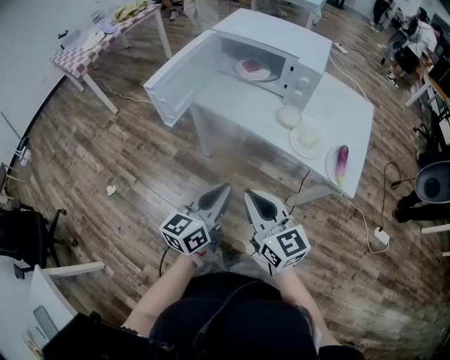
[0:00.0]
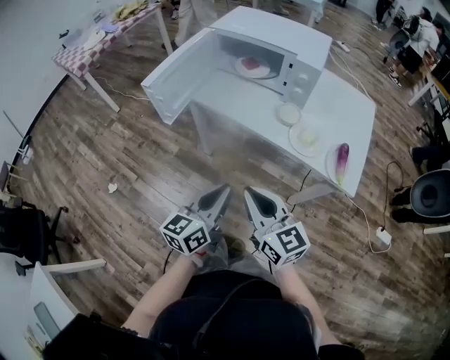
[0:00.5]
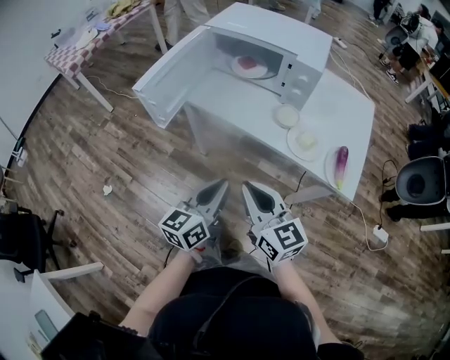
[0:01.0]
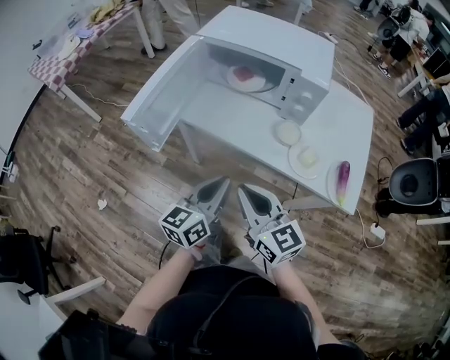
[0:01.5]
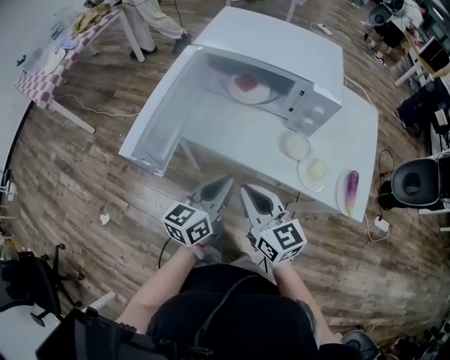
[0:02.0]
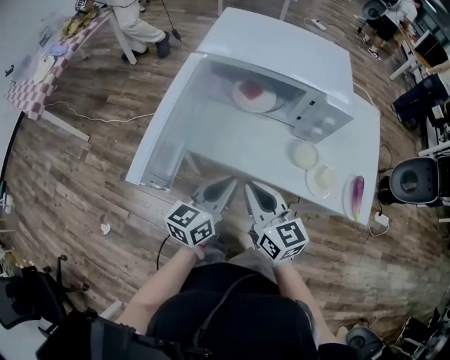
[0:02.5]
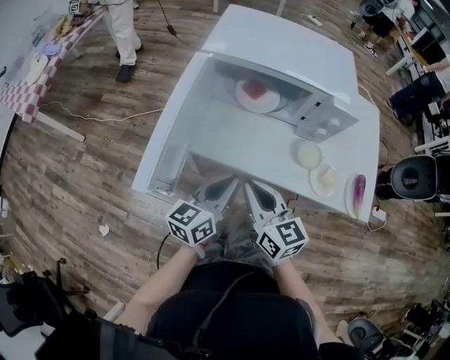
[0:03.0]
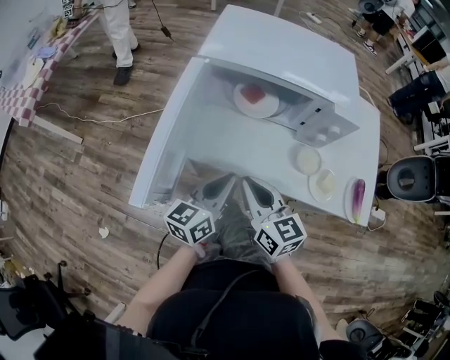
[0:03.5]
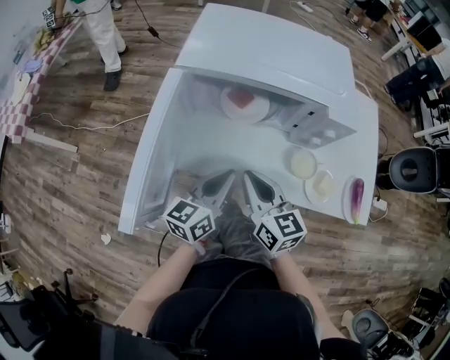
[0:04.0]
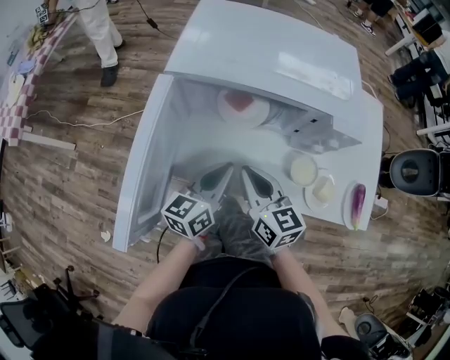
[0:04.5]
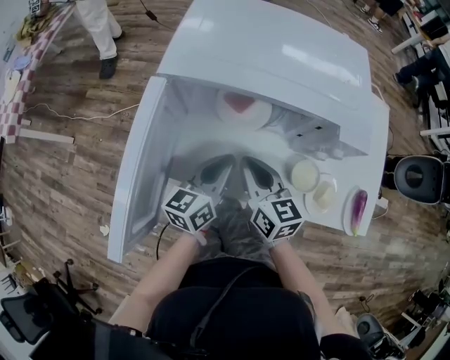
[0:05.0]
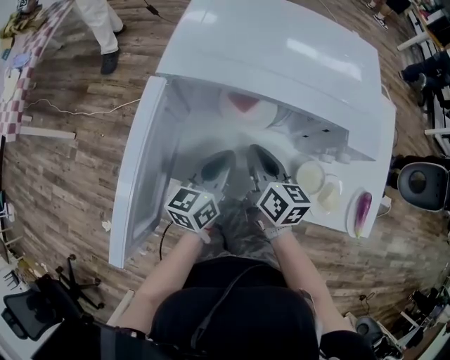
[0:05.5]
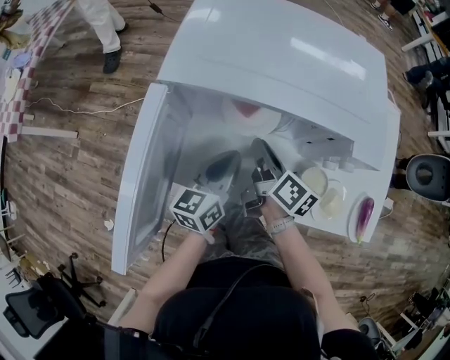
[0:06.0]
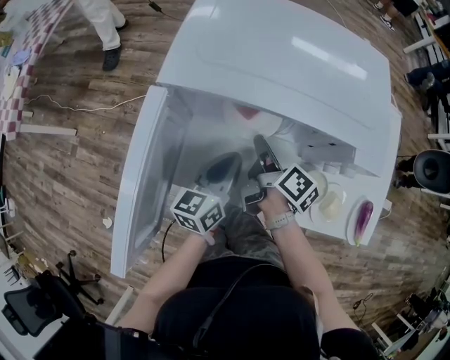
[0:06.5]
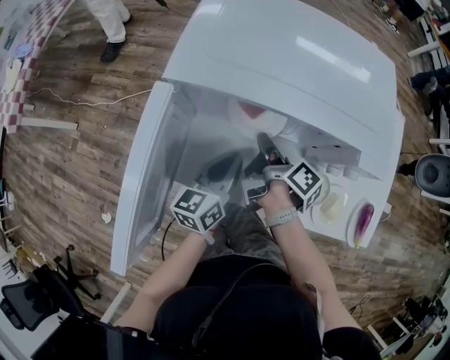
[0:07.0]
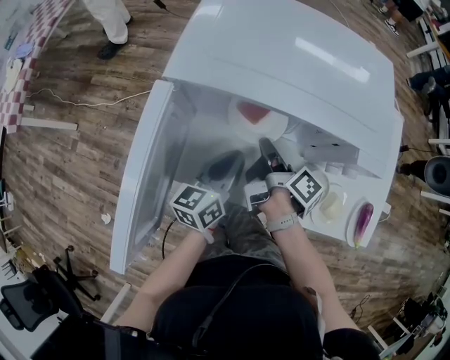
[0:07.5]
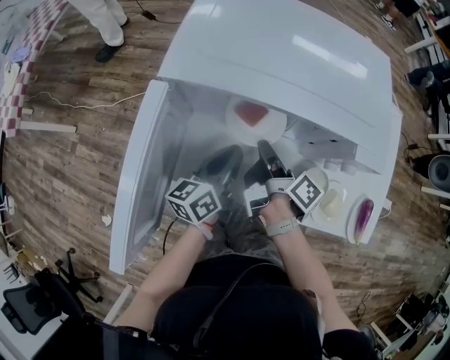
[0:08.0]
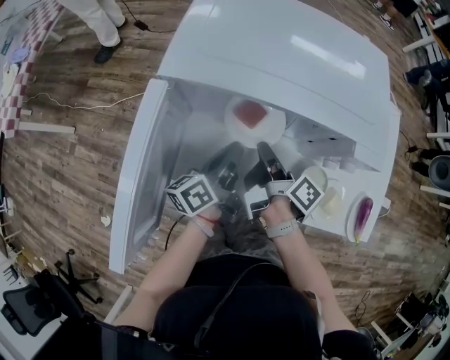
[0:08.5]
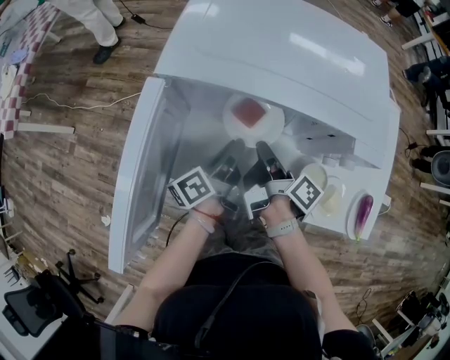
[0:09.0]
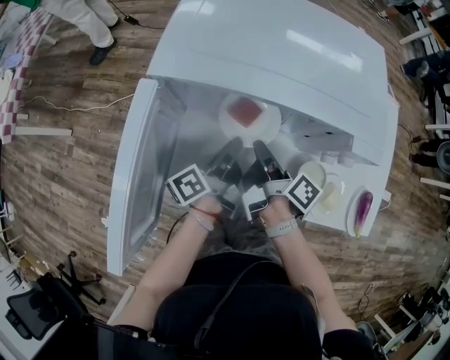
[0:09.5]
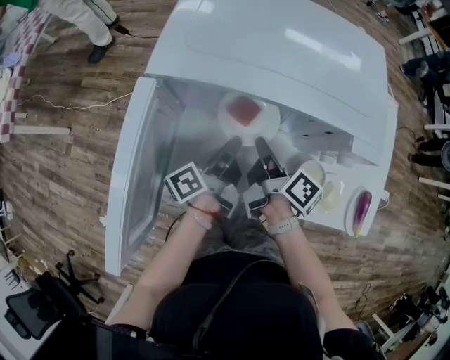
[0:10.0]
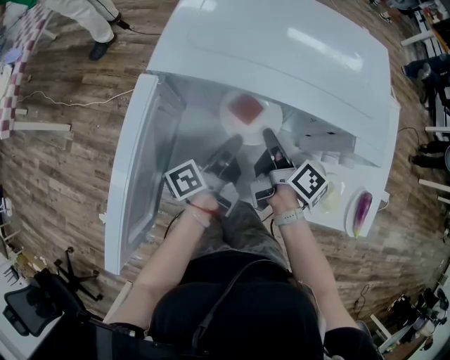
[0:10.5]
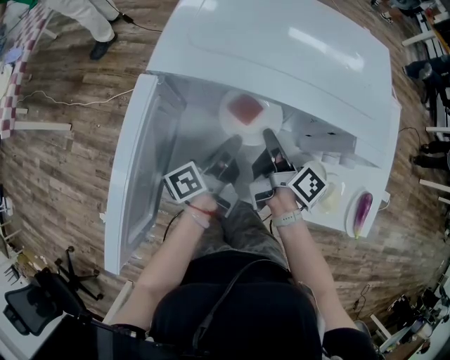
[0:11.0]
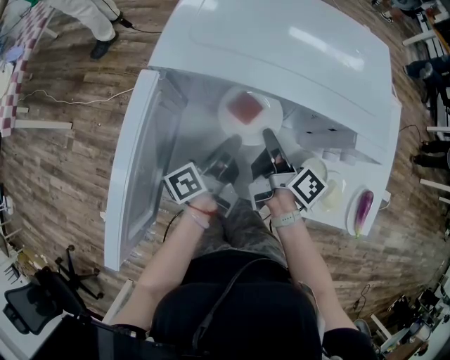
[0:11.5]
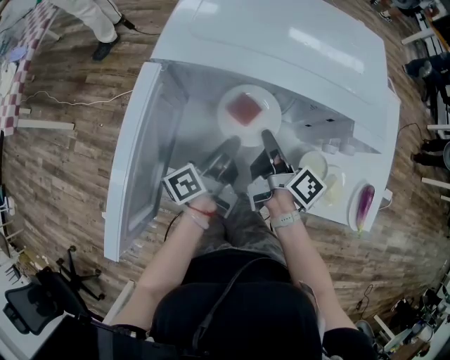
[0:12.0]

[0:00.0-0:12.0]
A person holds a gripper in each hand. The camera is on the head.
0:00.0 to 0:02.0: Both grippers travel together forward, about 20 cm.
0:02.0 to 0:04.0: The two grippers go some 15 cm forward.
0:04.0 to 0:06.0: The right gripper goes about 15 cm forward and downward, and rolls clockwise, seen from behind, by some 40 degrees, while the left gripper shifts some 10 cm forward.
0:06.0 to 0:08.0: The right gripper changes its angle by about 30 degrees.
0:08.0 to 0:10.0: The left gripper changes its angle by some 40 degrees.
0:10.0 to 0:12.0: The grippers make only small movements.

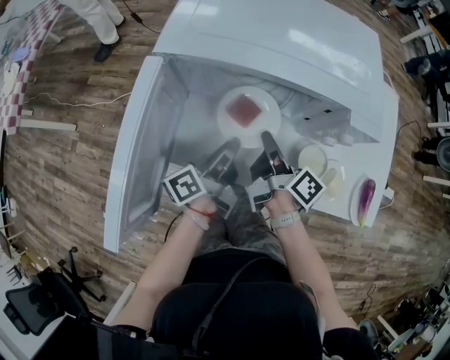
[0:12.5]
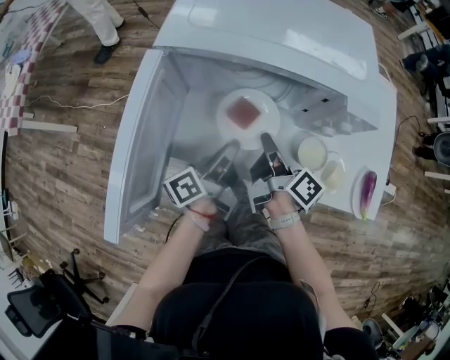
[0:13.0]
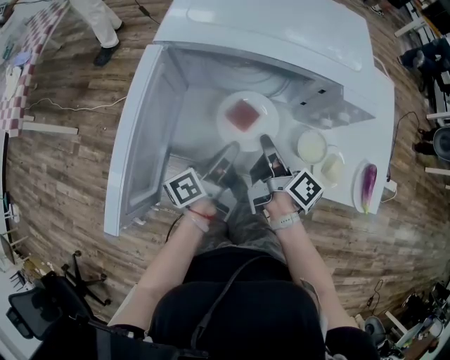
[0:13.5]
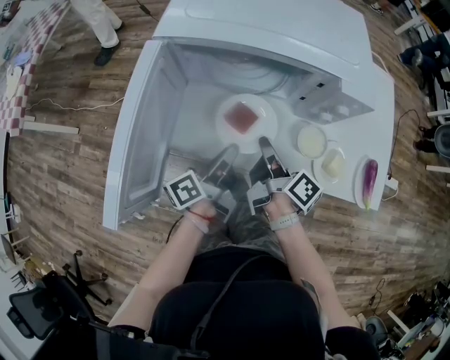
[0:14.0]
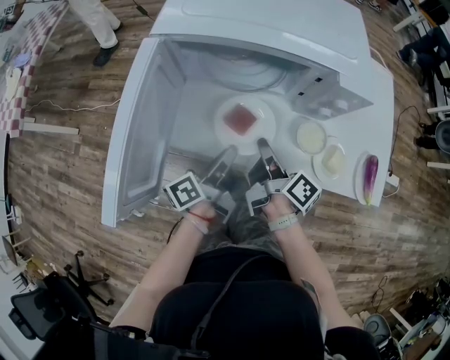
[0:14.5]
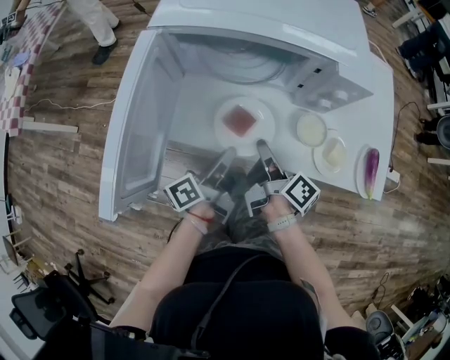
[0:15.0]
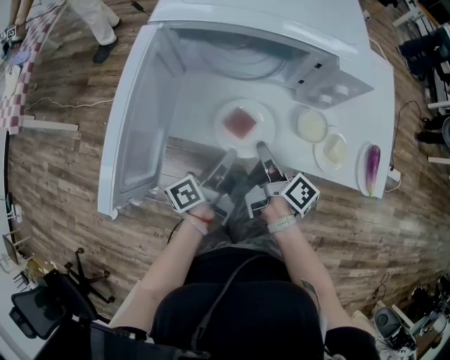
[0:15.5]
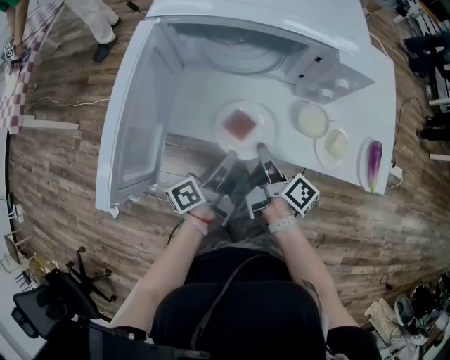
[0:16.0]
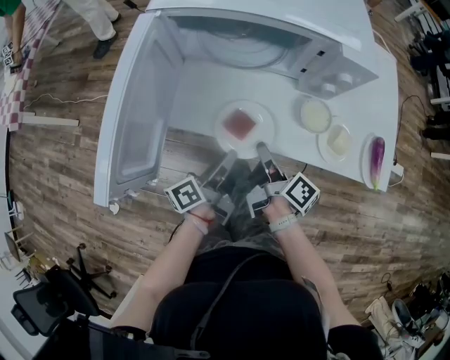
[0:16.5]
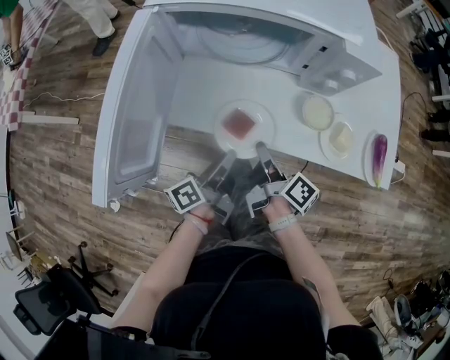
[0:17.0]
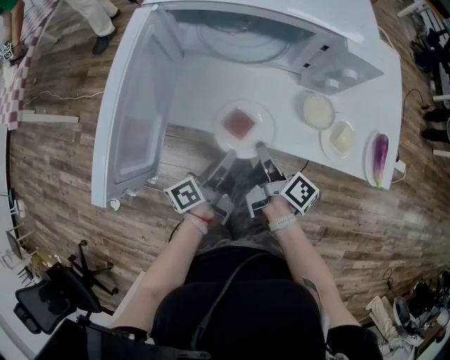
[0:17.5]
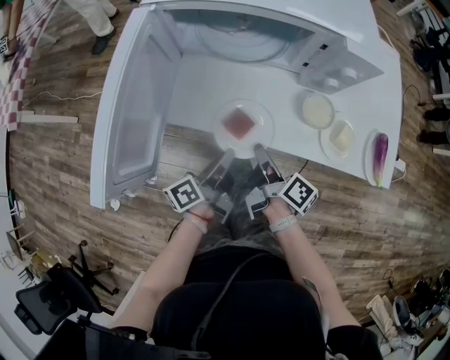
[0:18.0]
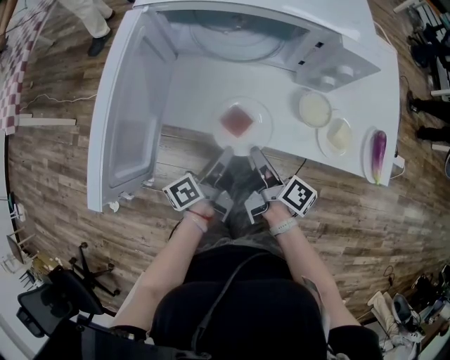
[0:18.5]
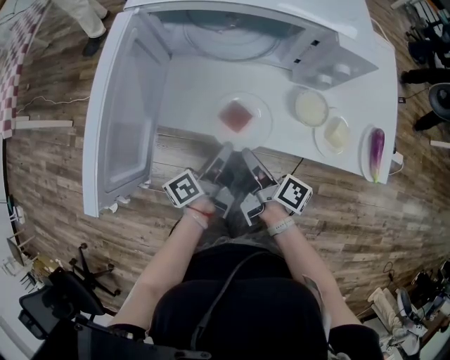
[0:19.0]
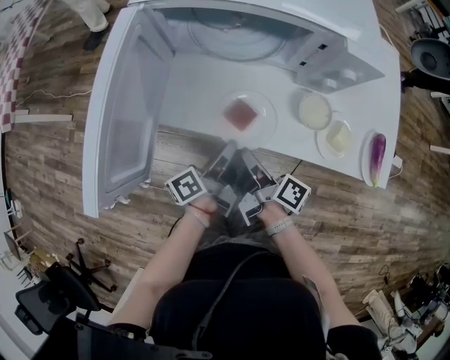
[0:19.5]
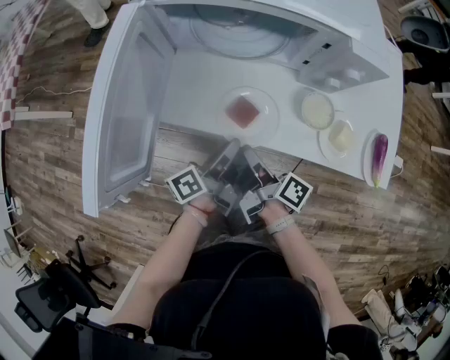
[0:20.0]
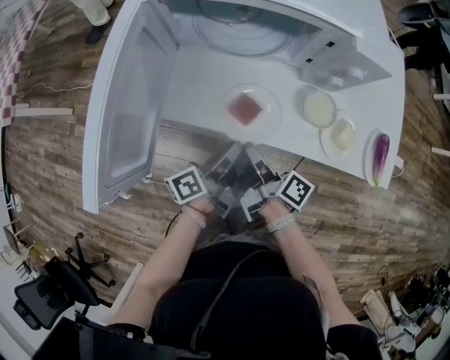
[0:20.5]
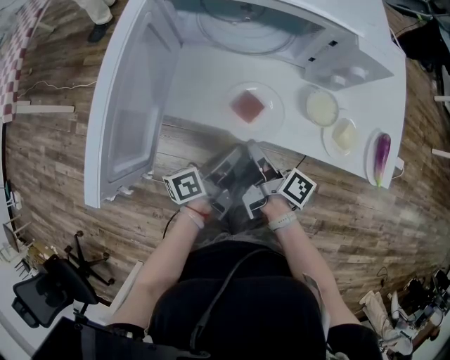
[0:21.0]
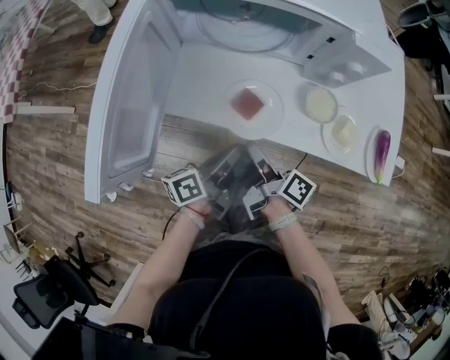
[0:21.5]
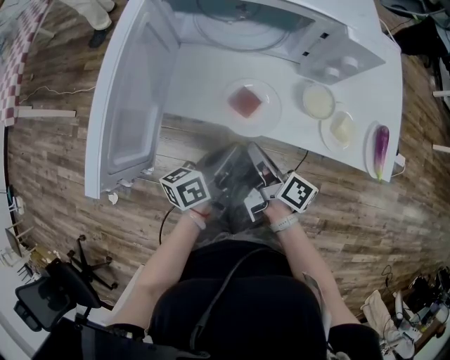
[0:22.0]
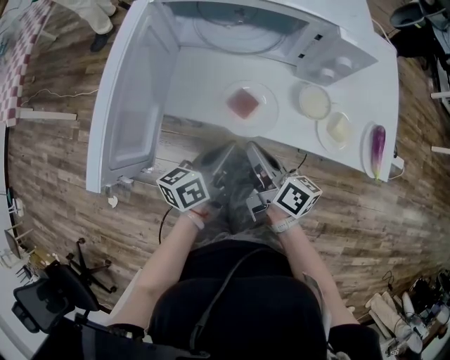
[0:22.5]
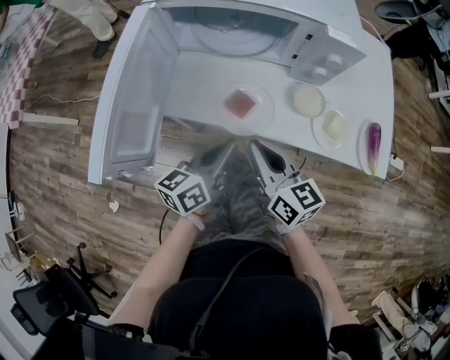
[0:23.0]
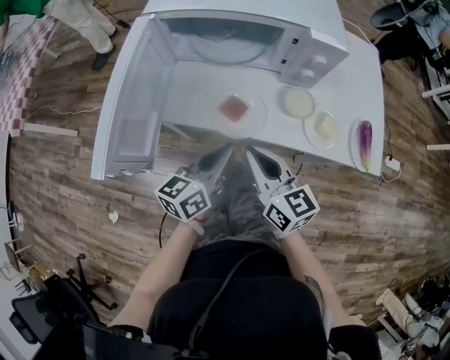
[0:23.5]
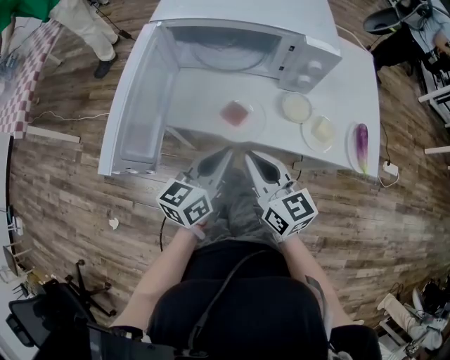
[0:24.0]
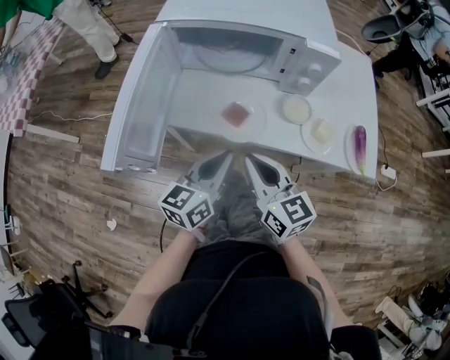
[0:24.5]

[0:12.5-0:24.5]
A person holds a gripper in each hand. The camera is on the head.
0:12.5 to 0:14.5: The grippers both shift backward by some 5 cm.
0:14.5 to 0:16.5: The grippers both shift backward by about 5 cm.
0:16.5 to 0:20.5: The grippers make only small movements.
0:20.5 to 0:22.5: The right gripper changes place by approximately 5 cm, and rotates about 30 degrees. The left gripper changes its angle by approximately 30 degrees.
0:22.5 to 0:24.5: Both grippers travel together upward, some 10 cm. The left gripper rotates approximately 20 degrees. Meanwhile the right gripper rotates around the line of its fingers by roughly 40 degrees, counterclockwise from behind.

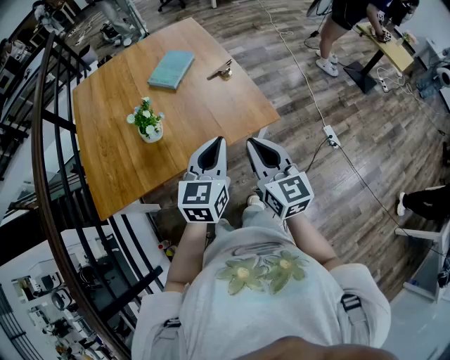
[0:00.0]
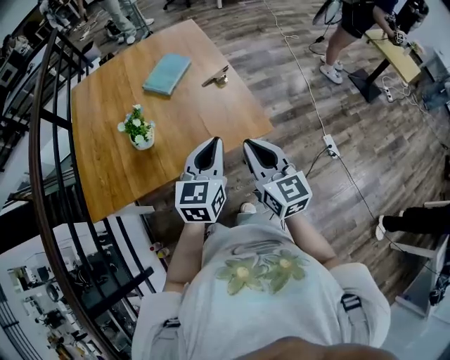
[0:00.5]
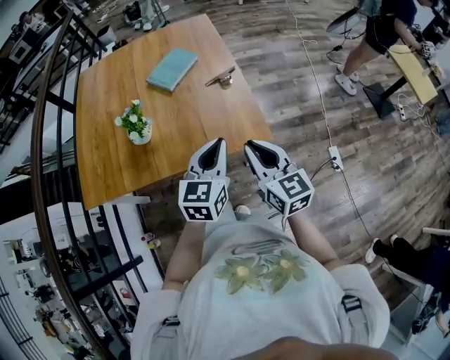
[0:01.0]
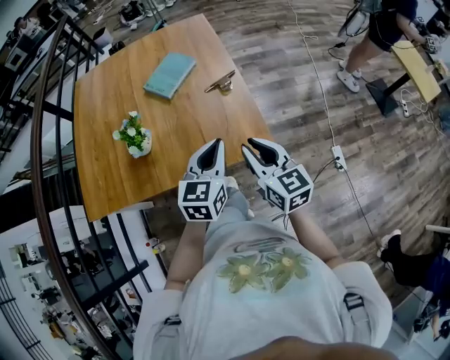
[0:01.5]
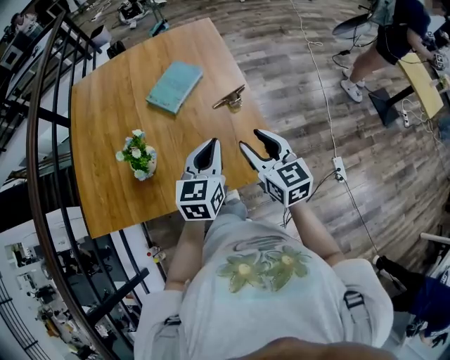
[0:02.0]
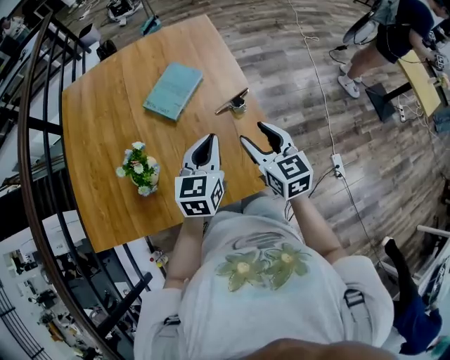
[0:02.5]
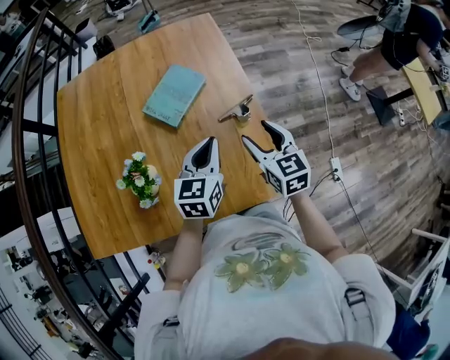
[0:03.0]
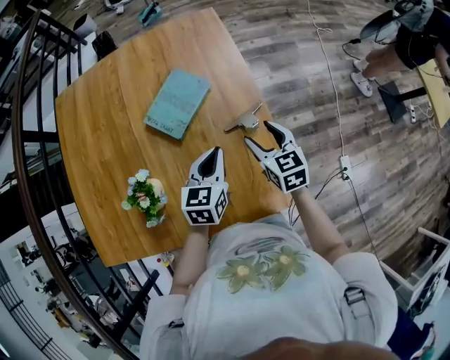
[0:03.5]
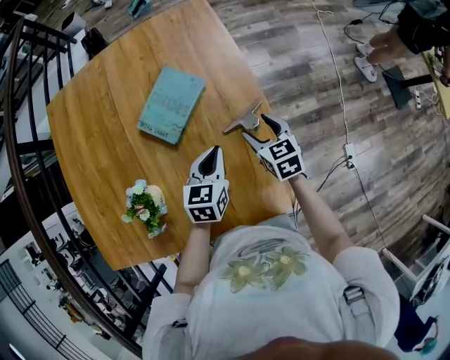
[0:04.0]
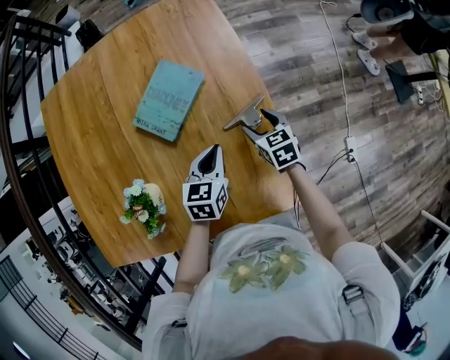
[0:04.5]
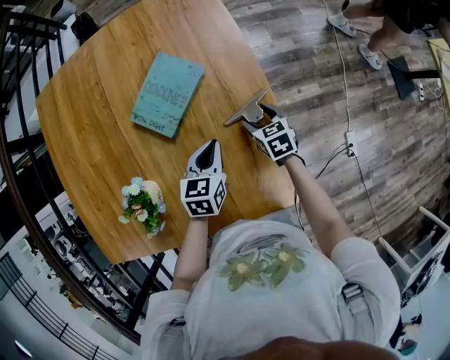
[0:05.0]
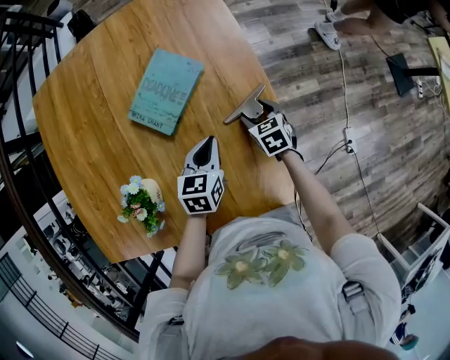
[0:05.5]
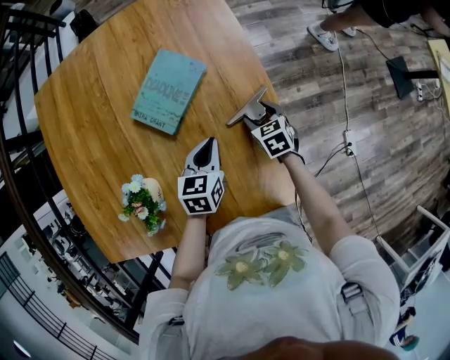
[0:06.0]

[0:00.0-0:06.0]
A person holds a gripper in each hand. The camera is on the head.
0:00.0 to 0:02.0: Both grippers travel together forward, about 25 cm. The right gripper opens up.
0:02.0 to 0:04.0: Both grippers move forward and downward, about 25 cm. The right gripper rotates some 20 degrees.
0:04.0 to 0:06.0: The right gripper heads downward, covering roughly 10 cm, while the left gripper changes place by roughly 5 cm.
